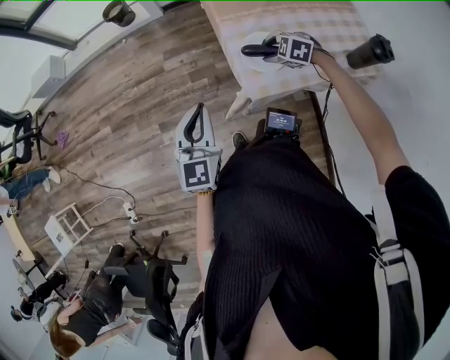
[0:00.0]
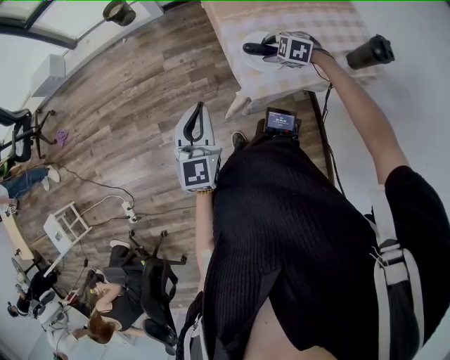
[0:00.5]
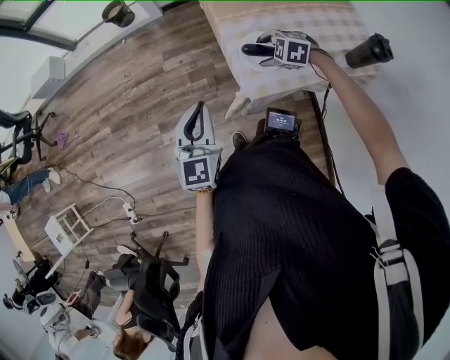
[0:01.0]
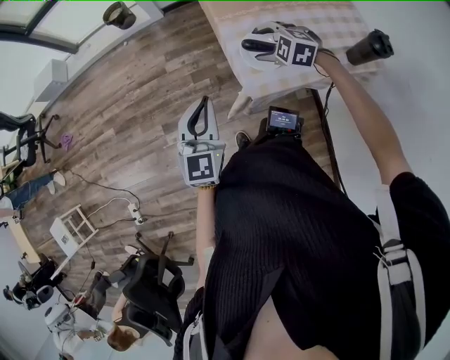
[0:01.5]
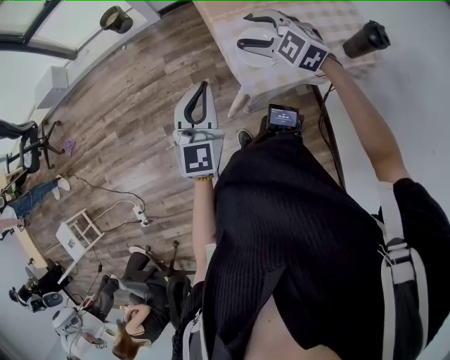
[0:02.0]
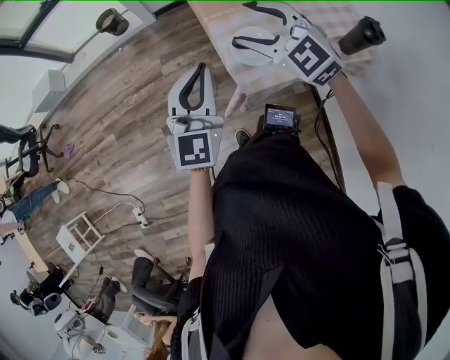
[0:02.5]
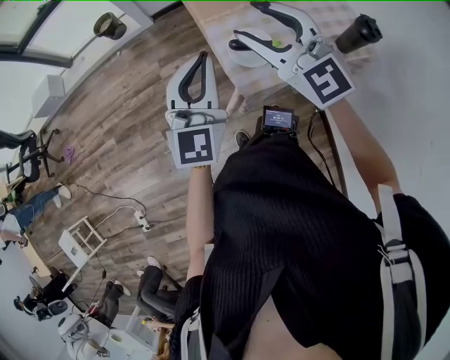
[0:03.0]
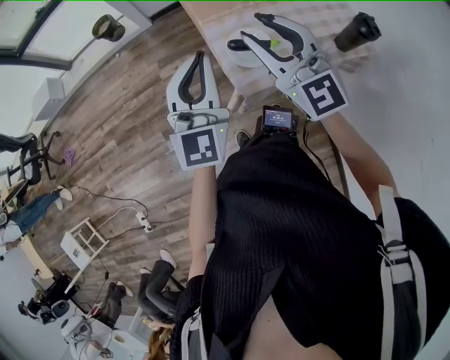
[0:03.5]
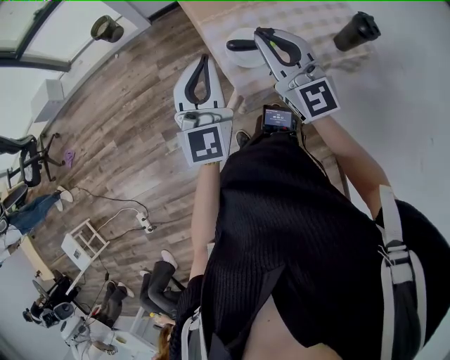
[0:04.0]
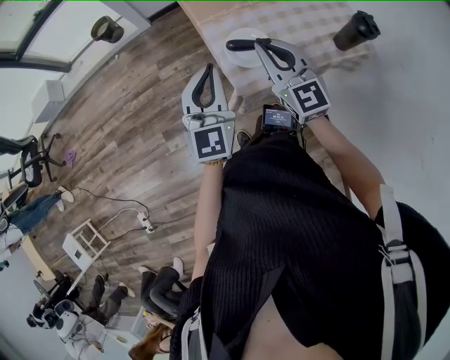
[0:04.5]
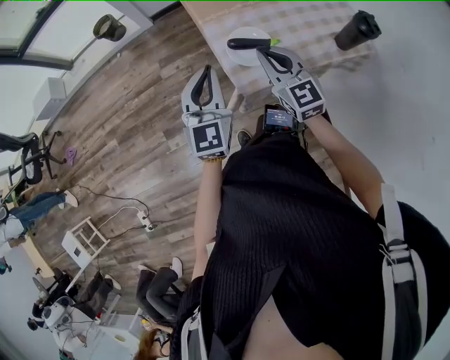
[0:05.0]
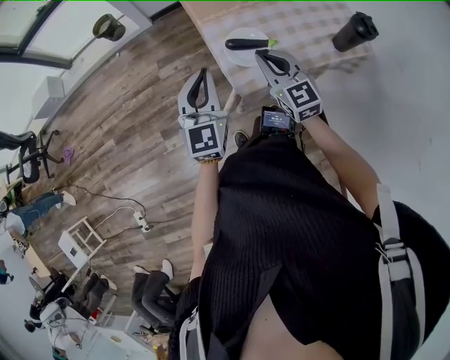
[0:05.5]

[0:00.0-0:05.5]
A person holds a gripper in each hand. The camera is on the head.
0:00.0 to 0:02.0: The left gripper is displaced to the right by approximately 5 cm. Meanwhile the right gripper is displaced upward by about 15 cm, and swivels roughly 30 degrees.
0:02.0 to 0:03.5: The left gripper shifts some 10 cm upward, while the right gripper is displaced upward and backward by about 15 cm, points its fingers roughly 40 degrees further upward, and closes up.
0:03.5 to 0:05.5: The two grippers go roughly 15 cm downward. The right gripper rotates about 20 degrees, and closes its fingers.

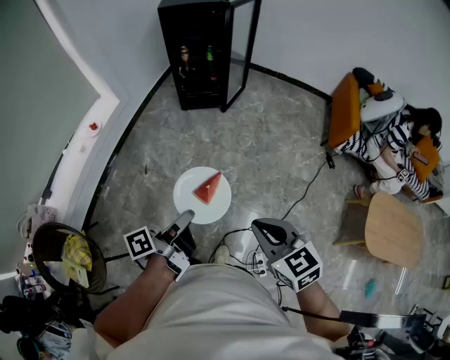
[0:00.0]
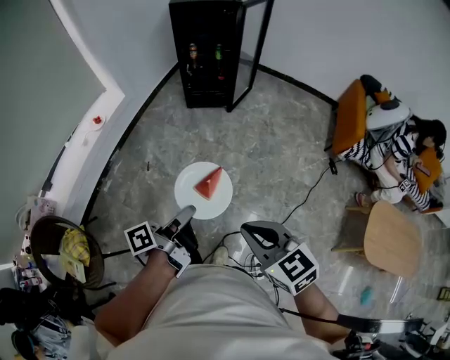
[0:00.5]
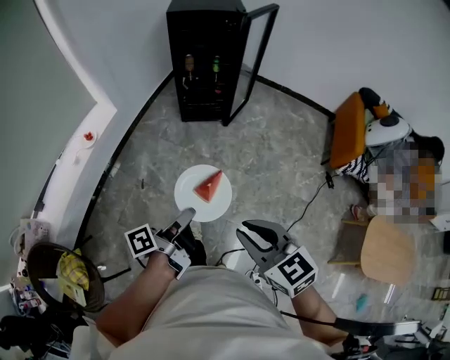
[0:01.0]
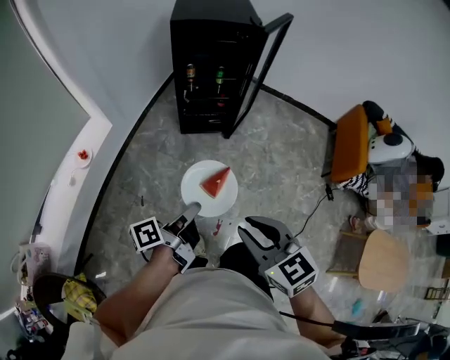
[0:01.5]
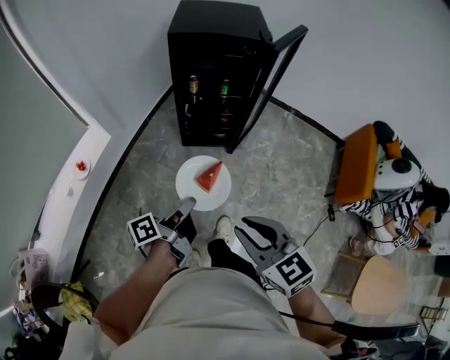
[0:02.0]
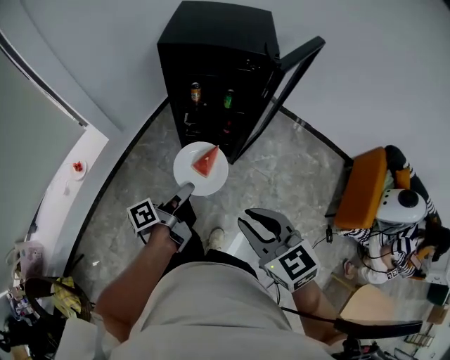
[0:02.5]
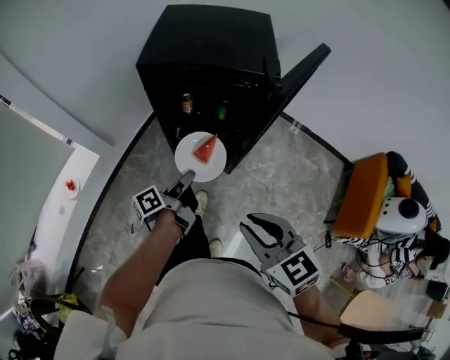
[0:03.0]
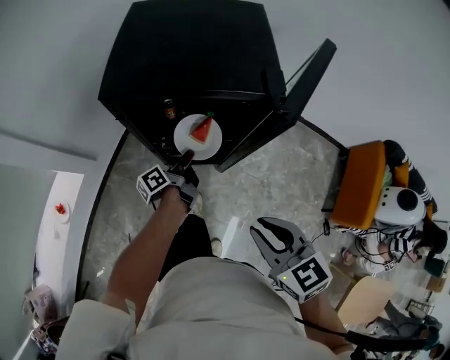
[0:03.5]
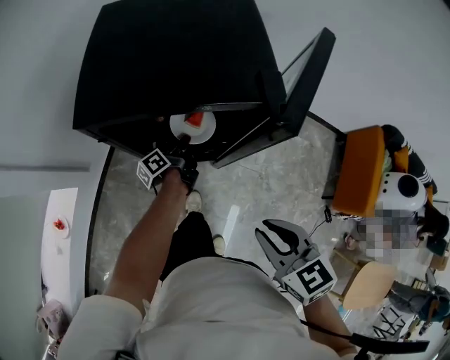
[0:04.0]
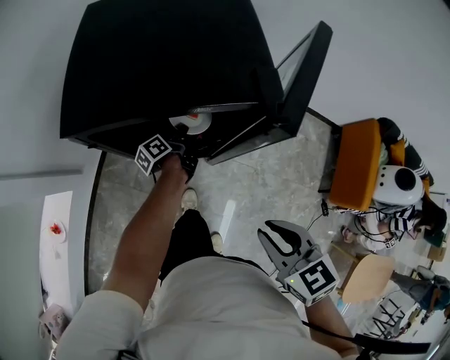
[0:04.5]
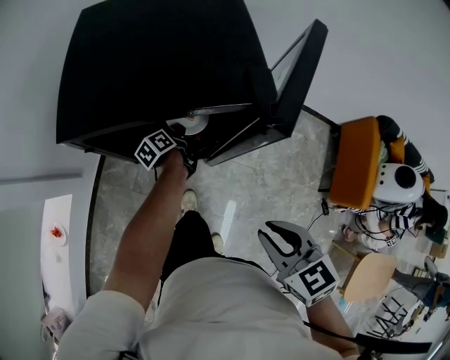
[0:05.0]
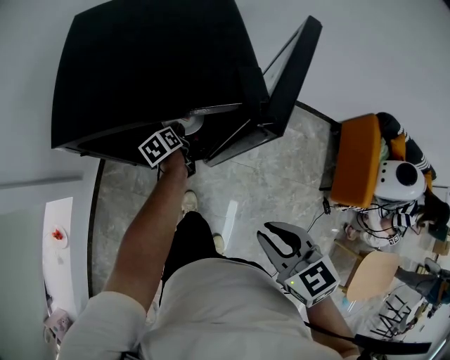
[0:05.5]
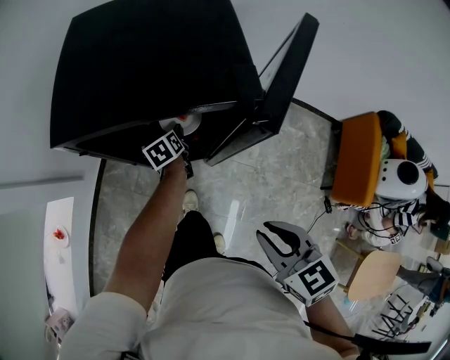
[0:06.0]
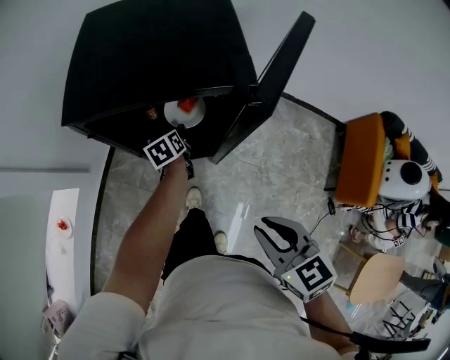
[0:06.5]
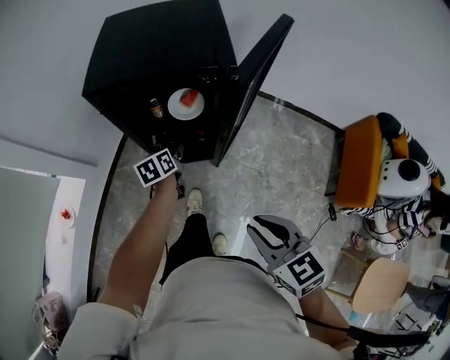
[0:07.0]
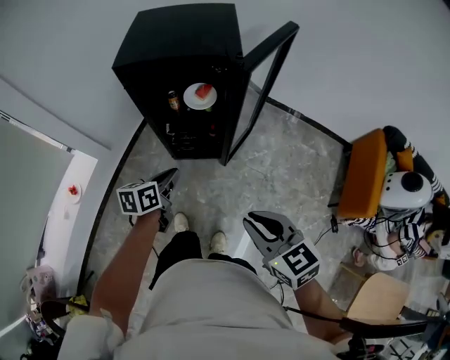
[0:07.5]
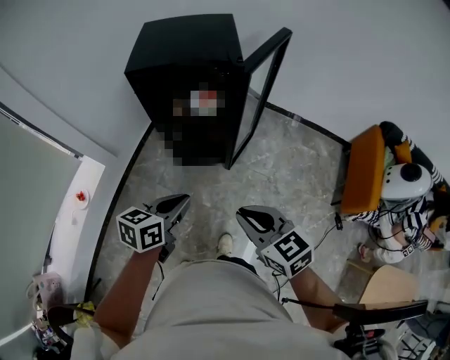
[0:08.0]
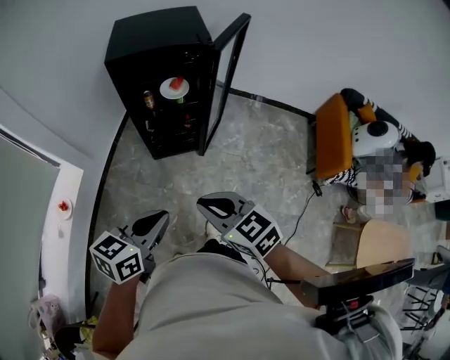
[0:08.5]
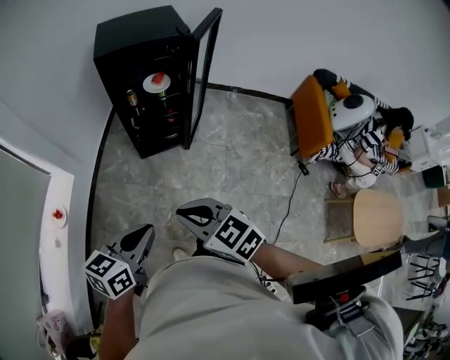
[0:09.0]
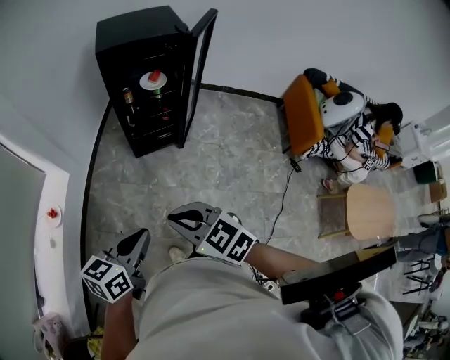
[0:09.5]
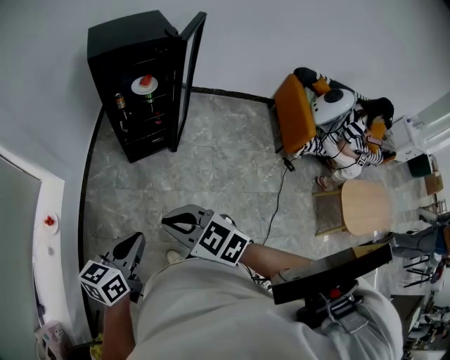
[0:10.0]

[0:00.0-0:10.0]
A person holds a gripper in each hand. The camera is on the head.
0:00.0 to 0:02.0: Both grippers are carried forward, about 50 cm.
0:02.0 to 0:04.0: The two grippers go roughly 50 cm forward.
0:04.0 to 0:06.0: The left gripper ends up roughly 5 cm from where it was, rolls clockwise, seen from behind, by approximately 40 degrees, and opens up.
0:06.0 to 0:08.0: The right gripper heads backward, covering about 20 cm, while the left gripper shifts roughly 50 cm backward and upward, swivels some 40 degrees, and closes its fingers.
0:08.0 to 0:10.0: Both grippers travel together backward and to the left, roughly 30 cm.

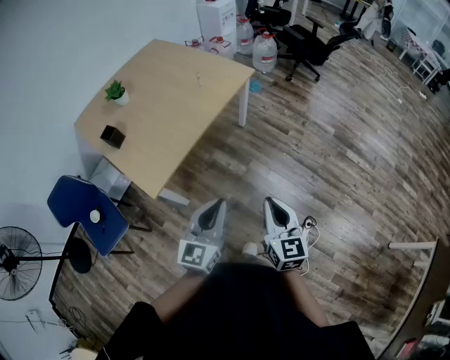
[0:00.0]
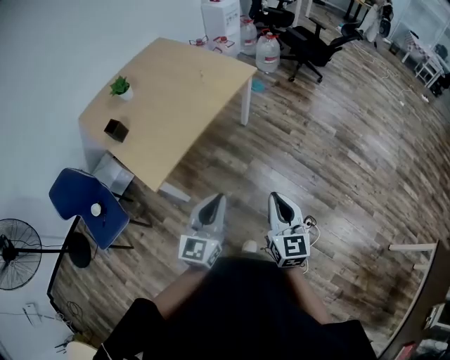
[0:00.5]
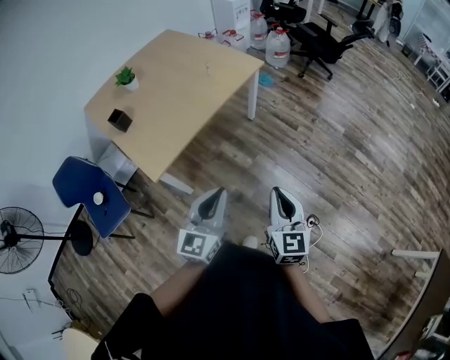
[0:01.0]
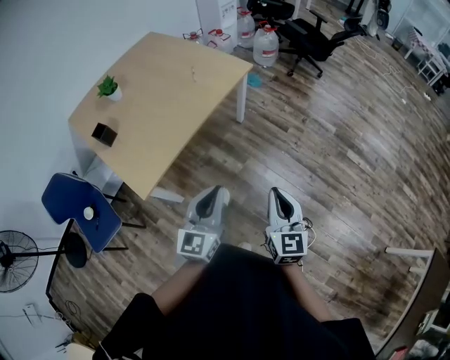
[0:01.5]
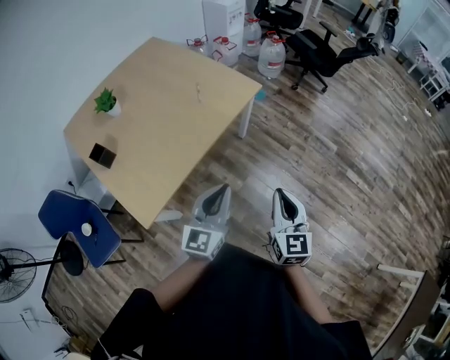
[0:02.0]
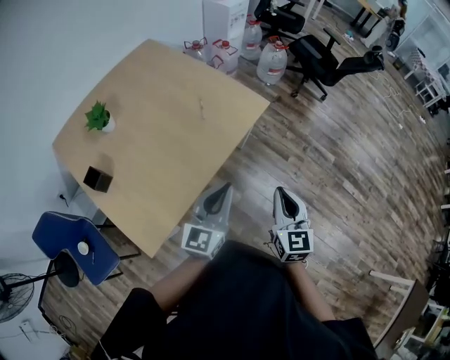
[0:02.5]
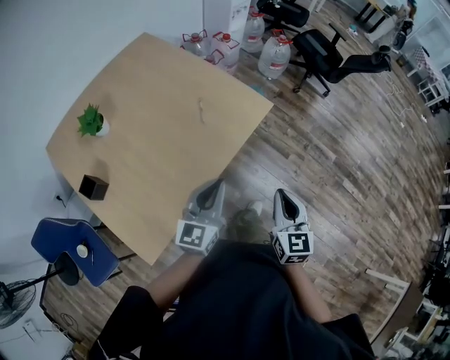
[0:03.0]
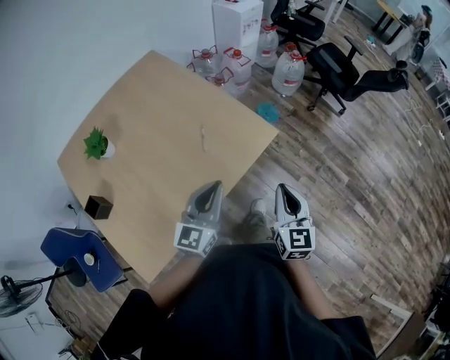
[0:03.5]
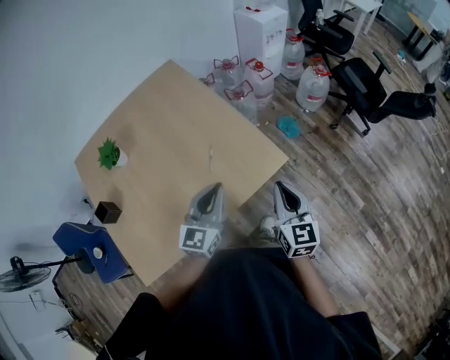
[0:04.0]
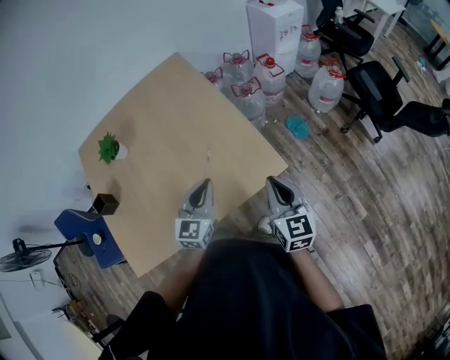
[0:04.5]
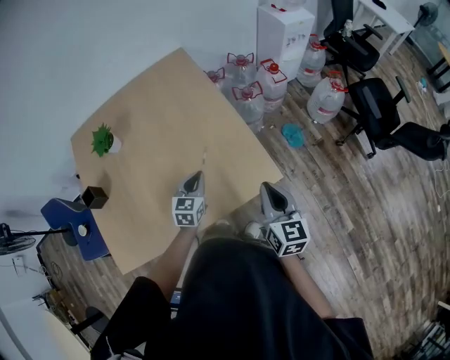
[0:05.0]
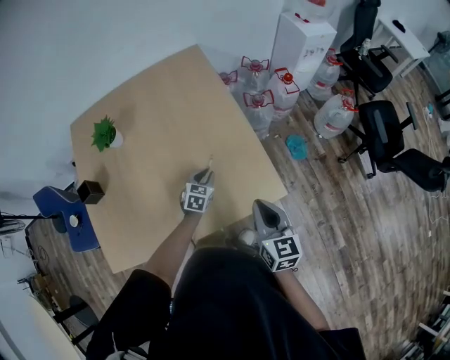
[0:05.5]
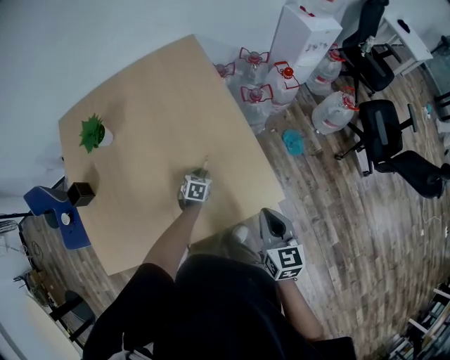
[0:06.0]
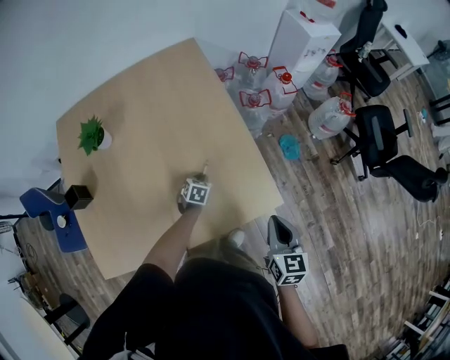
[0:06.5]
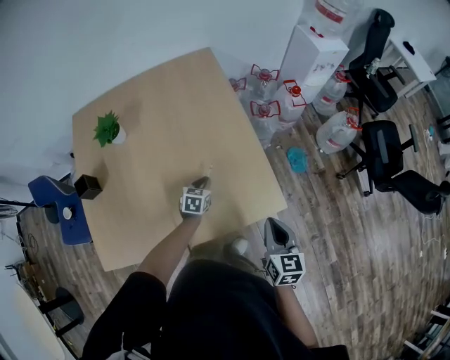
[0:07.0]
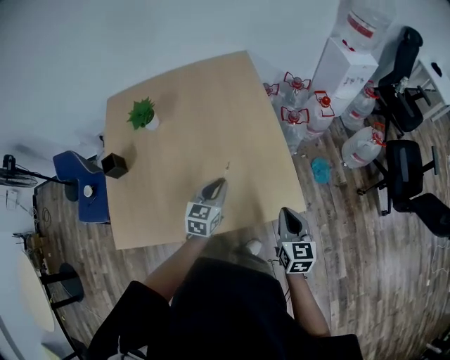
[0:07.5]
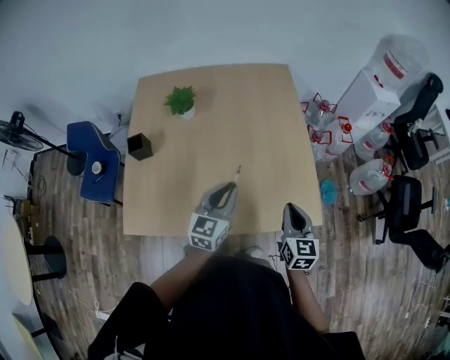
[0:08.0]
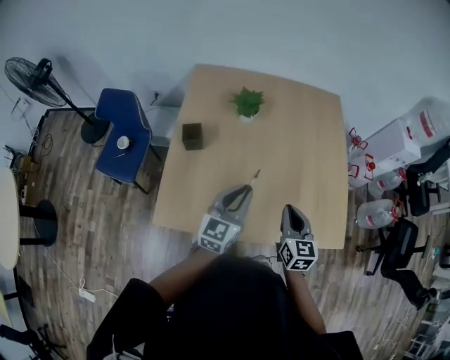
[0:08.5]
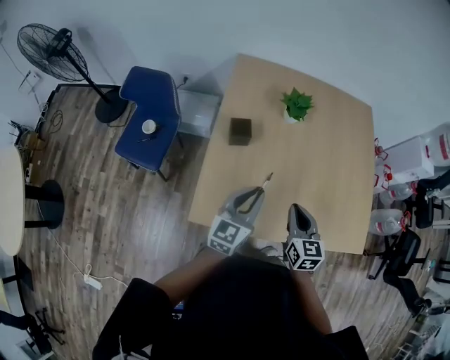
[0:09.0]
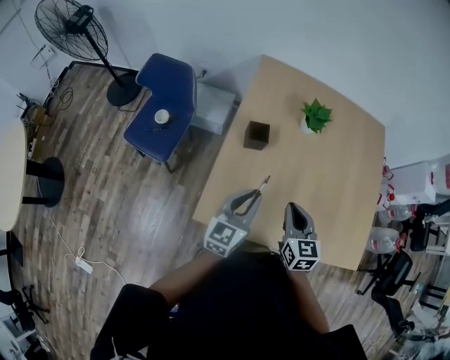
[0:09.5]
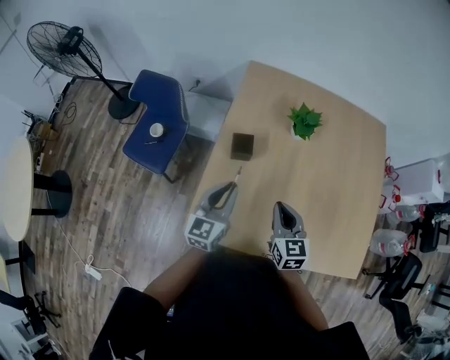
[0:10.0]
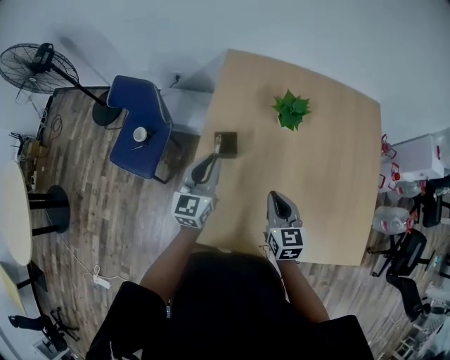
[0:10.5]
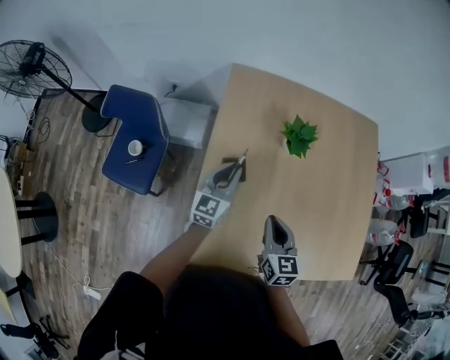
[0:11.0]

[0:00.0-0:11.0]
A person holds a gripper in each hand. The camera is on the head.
0:00.0 to 0:02.0: Both grippers move forward, approximately 25 cm.
0:02.0 to 0:03.5: Both grippers move forward, some 40 cm.
0:03.5 to 0:05.5: The right gripper moves some 25 cm, and changes its angle by some 30 degrees. The left gripper changes place by roughly 40 cm, and tilts its fingers some 40 degrees downward.
0:05.5 to 0:07.5: The left gripper travels upward and backward by roughly 15 cm, and changes its angle by roughly 20 degrees.
0:07.5 to 0:09.0: Both grippers are carried to the left, approximately 60 cm. The left gripper swivels some 30 degrees. The right gripper swivels about 20 degrees.
0:09.0 to 0:11.0: The right gripper is displaced forward and to the left by about 20 cm. Meanwhile the left gripper moves forward, about 30 cm.
